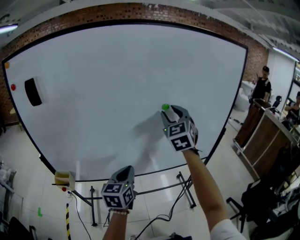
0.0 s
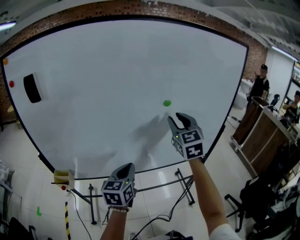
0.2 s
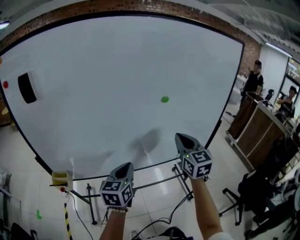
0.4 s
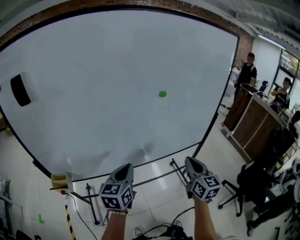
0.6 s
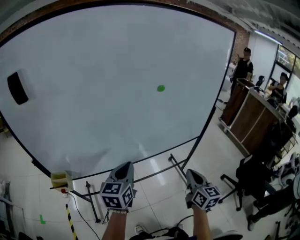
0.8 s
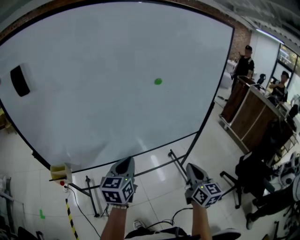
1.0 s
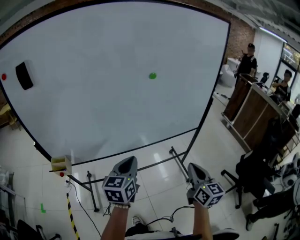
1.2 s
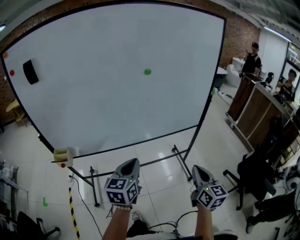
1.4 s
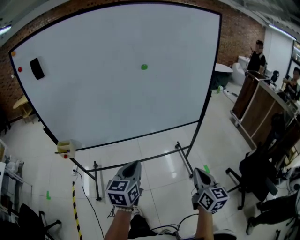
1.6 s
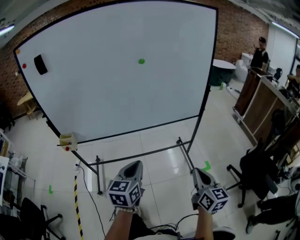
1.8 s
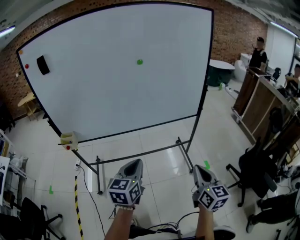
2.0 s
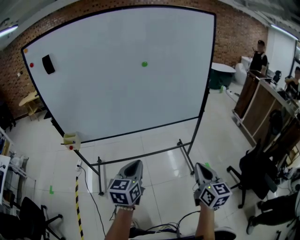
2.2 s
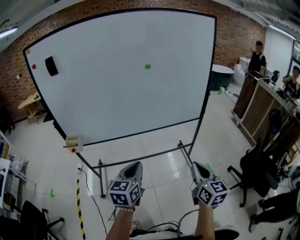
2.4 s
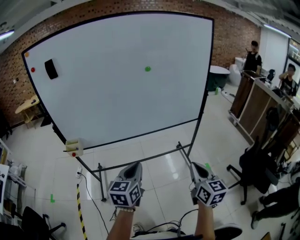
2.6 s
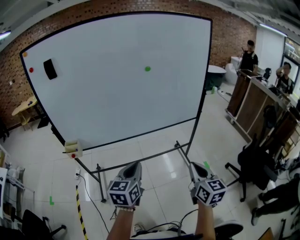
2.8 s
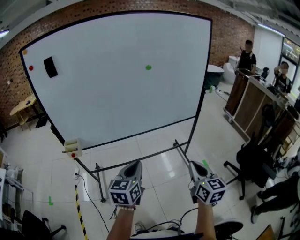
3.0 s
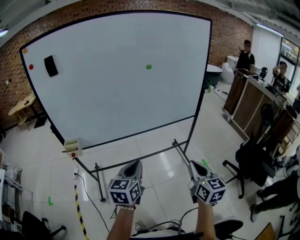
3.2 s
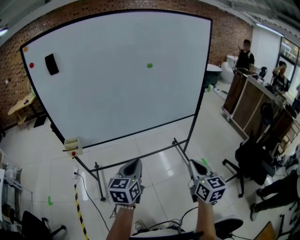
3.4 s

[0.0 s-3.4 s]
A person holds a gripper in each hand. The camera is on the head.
0.0 to 1.6 s: The left gripper moves backward and to the right, about 25 cm. The right gripper moves backward, downward and to the right, roughly 50 cm, rolls clockwise, seen from behind, by some 50 degrees, and closes up.
1.6 to 3.4 s: The right gripper moves to the left and backward, roughly 15 cm; the left gripper heads backward and to the left, covering some 10 cm.

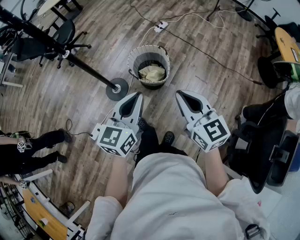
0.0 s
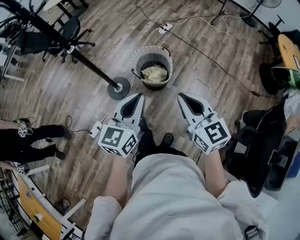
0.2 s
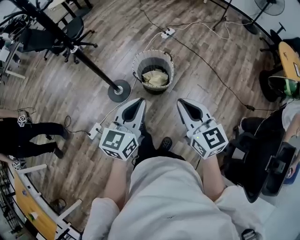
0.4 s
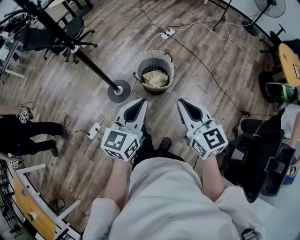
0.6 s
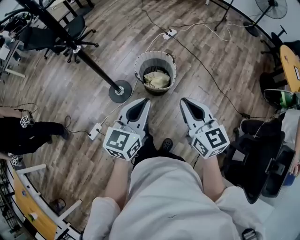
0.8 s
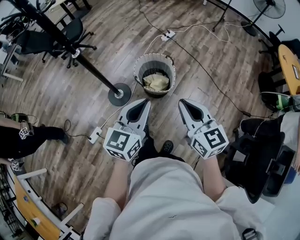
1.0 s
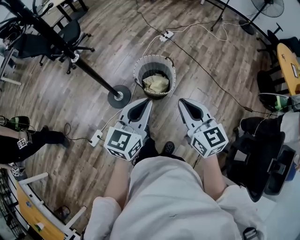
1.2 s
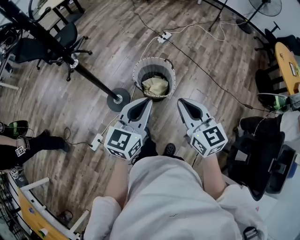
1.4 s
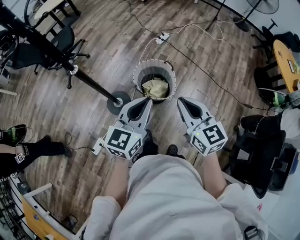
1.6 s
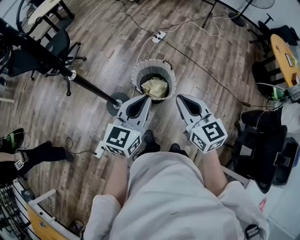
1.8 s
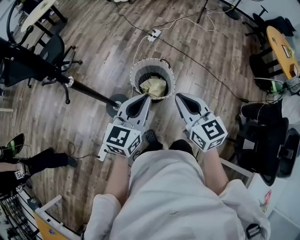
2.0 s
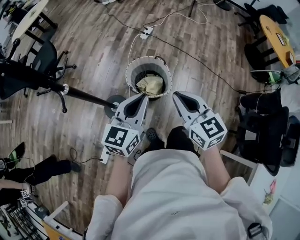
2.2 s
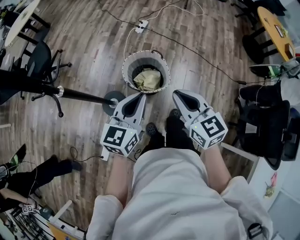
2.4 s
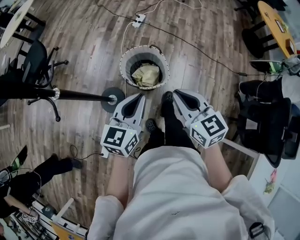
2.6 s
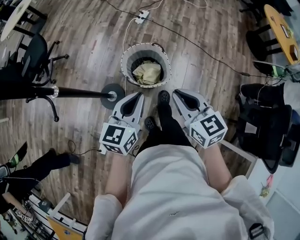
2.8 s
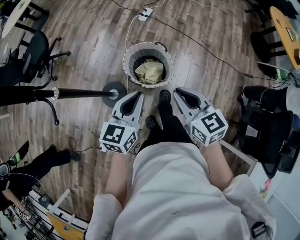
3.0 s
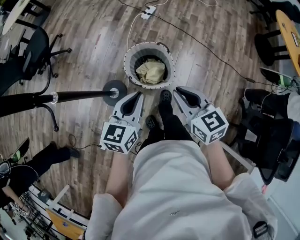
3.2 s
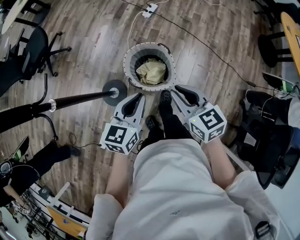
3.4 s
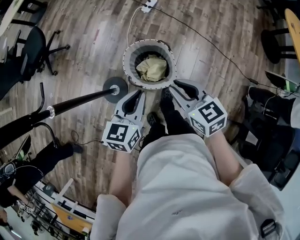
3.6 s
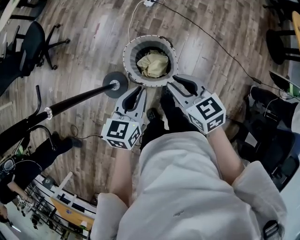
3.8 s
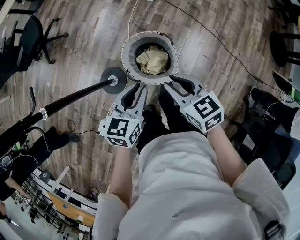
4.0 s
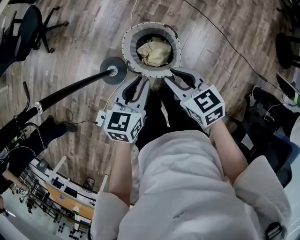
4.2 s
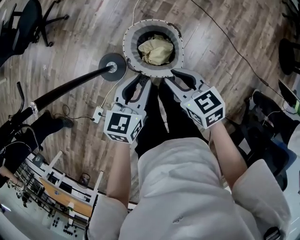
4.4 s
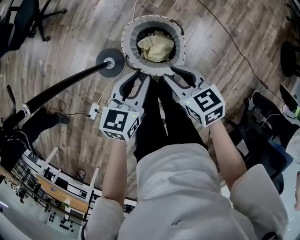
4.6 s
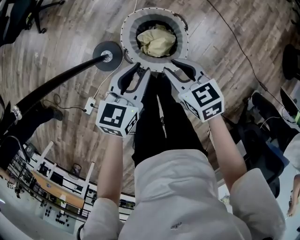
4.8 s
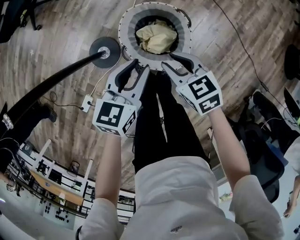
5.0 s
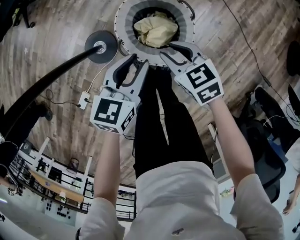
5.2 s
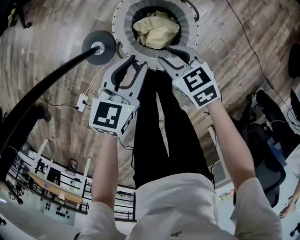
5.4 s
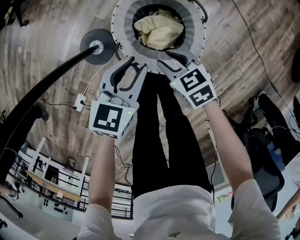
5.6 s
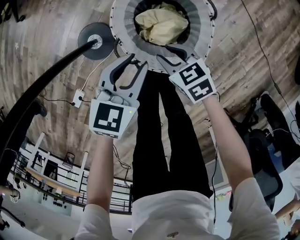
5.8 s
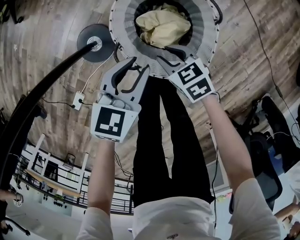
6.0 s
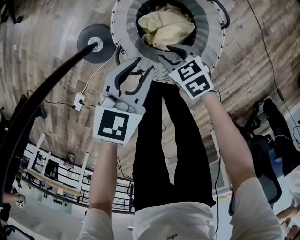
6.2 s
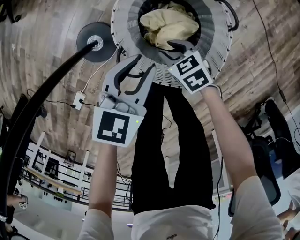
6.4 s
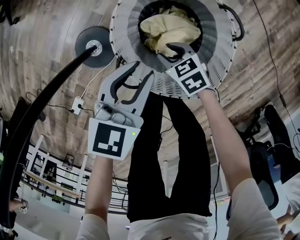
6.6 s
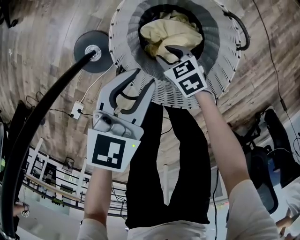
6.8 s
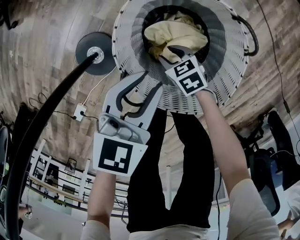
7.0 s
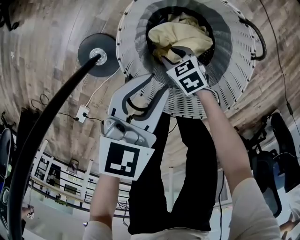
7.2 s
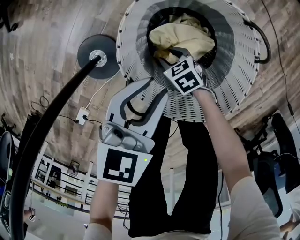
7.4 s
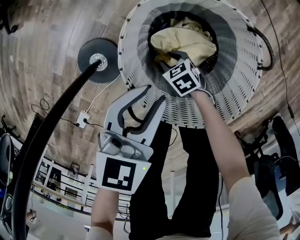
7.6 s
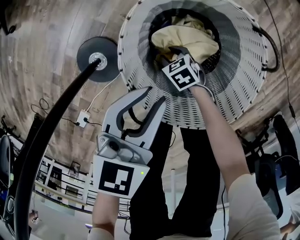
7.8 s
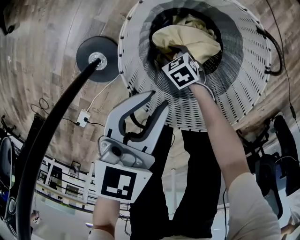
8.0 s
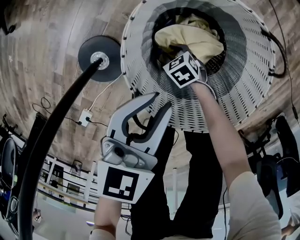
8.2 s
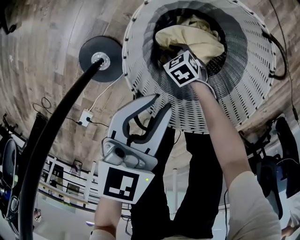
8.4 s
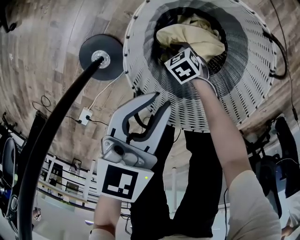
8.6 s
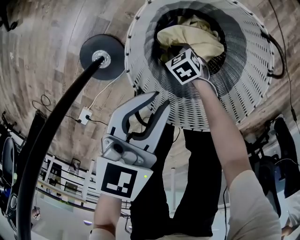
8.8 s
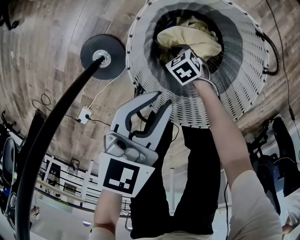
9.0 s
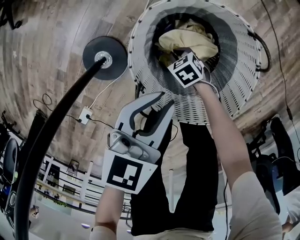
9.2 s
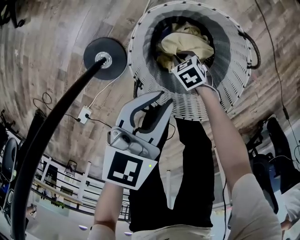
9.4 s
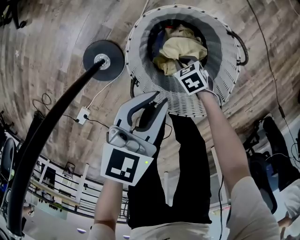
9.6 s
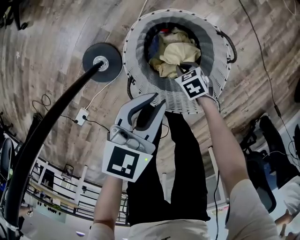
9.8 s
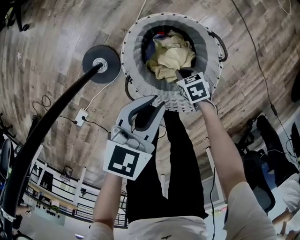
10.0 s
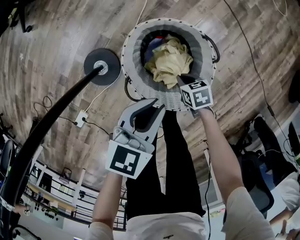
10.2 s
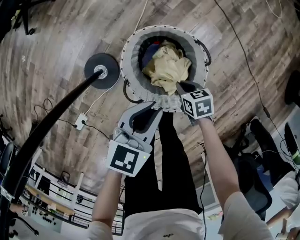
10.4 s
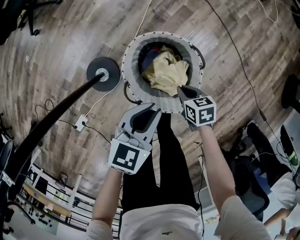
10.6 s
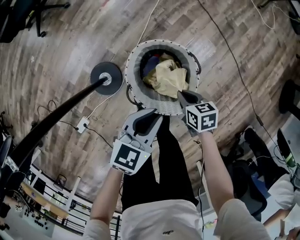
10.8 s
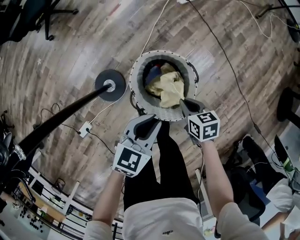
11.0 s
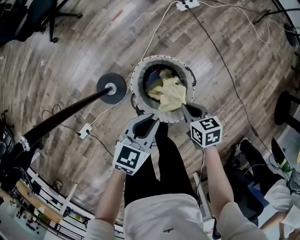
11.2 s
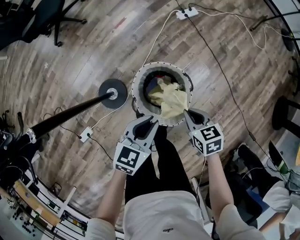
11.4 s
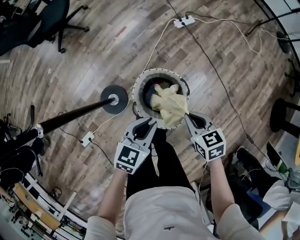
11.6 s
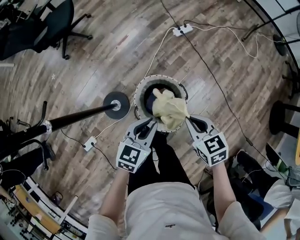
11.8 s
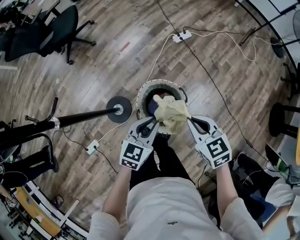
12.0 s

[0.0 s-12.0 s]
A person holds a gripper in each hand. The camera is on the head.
0.0 to 1.6 s: Both grippers travel together forward and to the left, roughly 15 cm.
1.6 to 3.0 s: The two grippers go about 10 cm downward and forward.
3.0 to 4.4 s: The right gripper heads downward and forward, covering about 20 cm, and rotates some 30 degrees. The left gripper travels forward, downward and to the right by about 20 cm.
4.4 to 6.0 s: Both grippers move downward, approximately 30 cm. The right gripper turns by roughly 20 degrees.
6.0 to 7.6 s: The right gripper heads downward, covering about 25 cm, while the left gripper shifts roughly 10 cm downward and forward.
7.6 to 9.0 s: The right gripper closes up.
9.0 to 10.4 s: The right gripper shifts approximately 25 cm upward, and turns by about 20 degrees. Meanwhile the left gripper shifts roughly 15 cm upward.
10.4 to 12.0 s: The right gripper moves upward, roughly 40 cm, and turns by about 40 degrees, while the left gripper moves upward, roughly 20 cm.

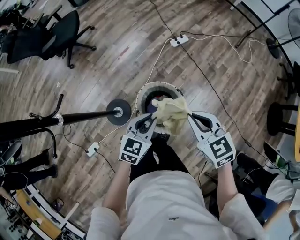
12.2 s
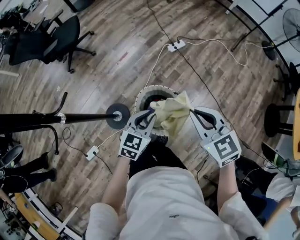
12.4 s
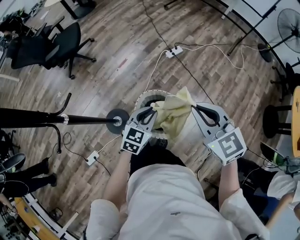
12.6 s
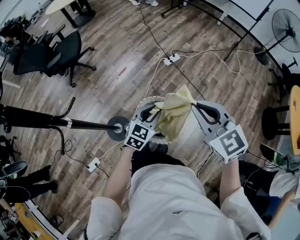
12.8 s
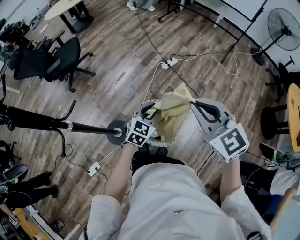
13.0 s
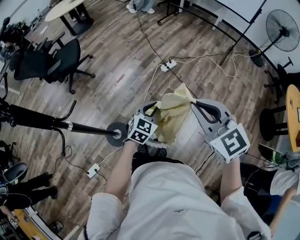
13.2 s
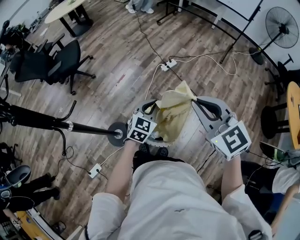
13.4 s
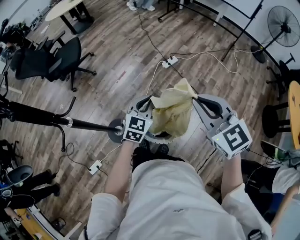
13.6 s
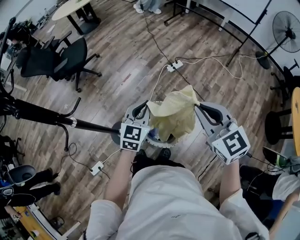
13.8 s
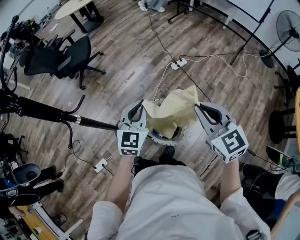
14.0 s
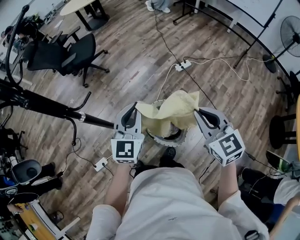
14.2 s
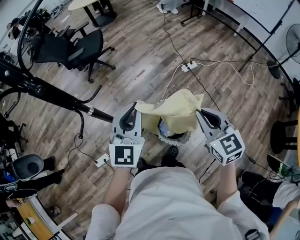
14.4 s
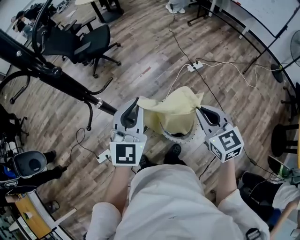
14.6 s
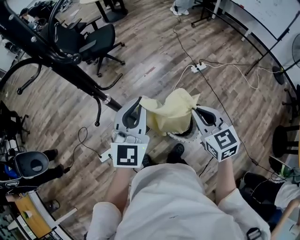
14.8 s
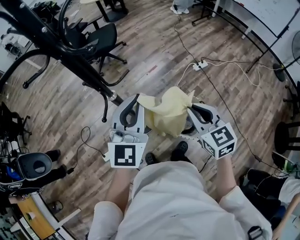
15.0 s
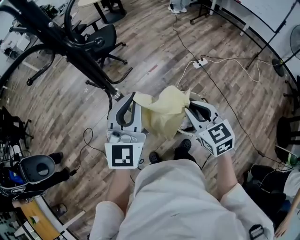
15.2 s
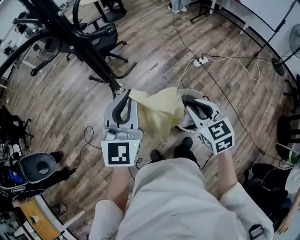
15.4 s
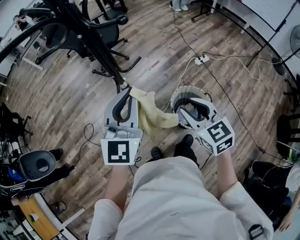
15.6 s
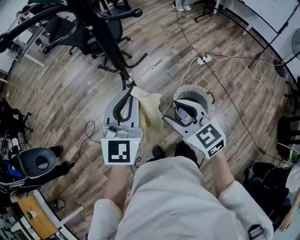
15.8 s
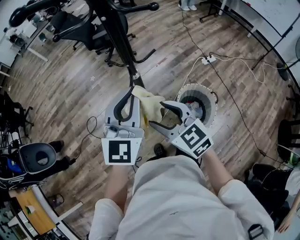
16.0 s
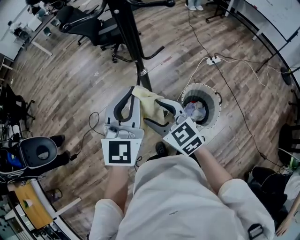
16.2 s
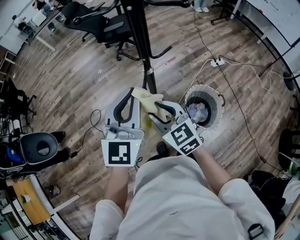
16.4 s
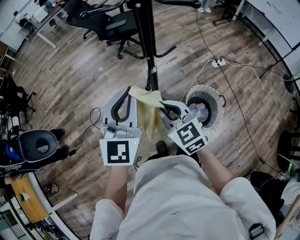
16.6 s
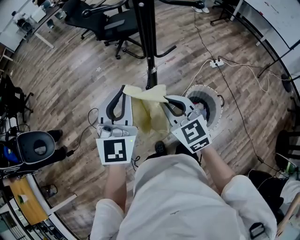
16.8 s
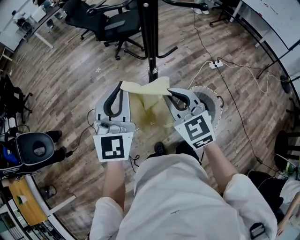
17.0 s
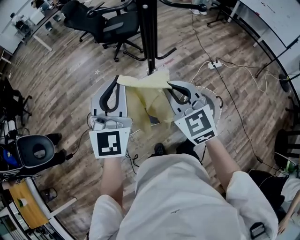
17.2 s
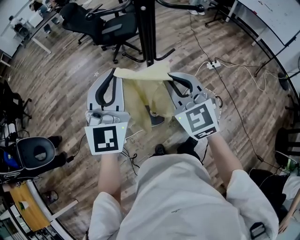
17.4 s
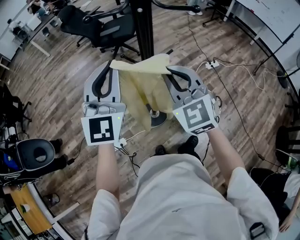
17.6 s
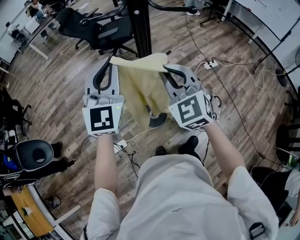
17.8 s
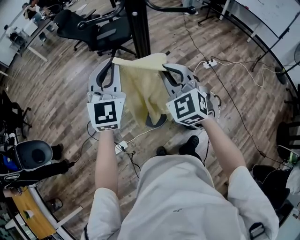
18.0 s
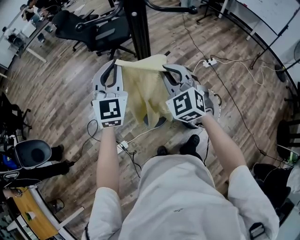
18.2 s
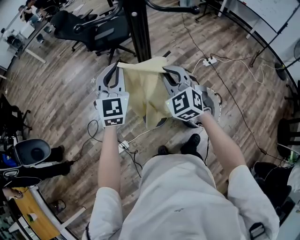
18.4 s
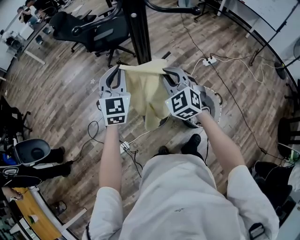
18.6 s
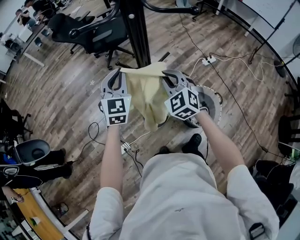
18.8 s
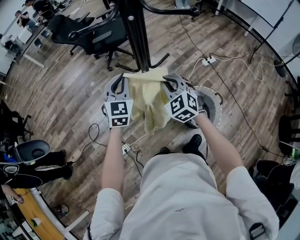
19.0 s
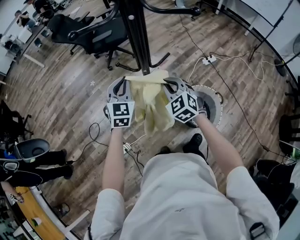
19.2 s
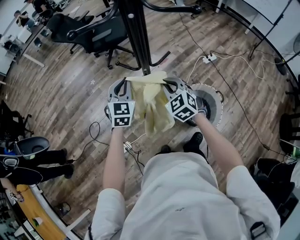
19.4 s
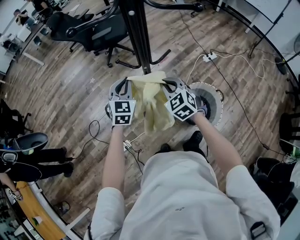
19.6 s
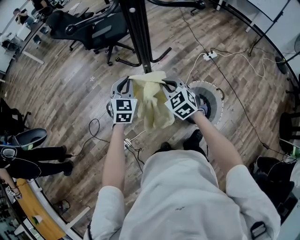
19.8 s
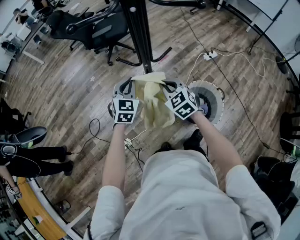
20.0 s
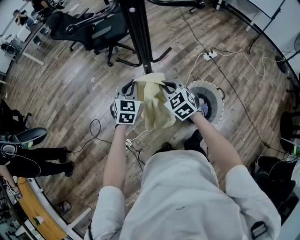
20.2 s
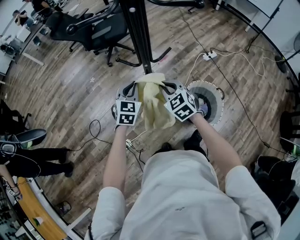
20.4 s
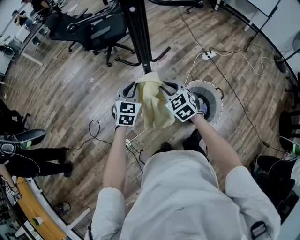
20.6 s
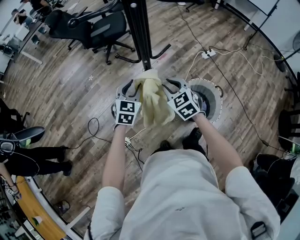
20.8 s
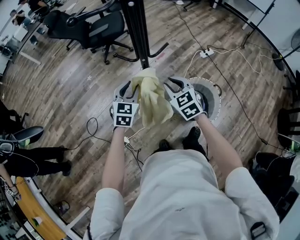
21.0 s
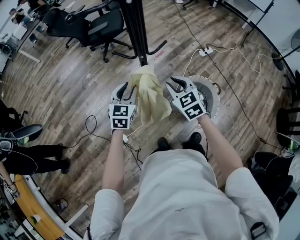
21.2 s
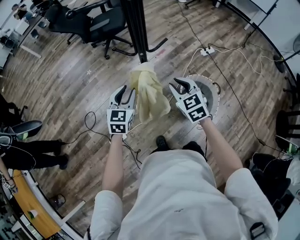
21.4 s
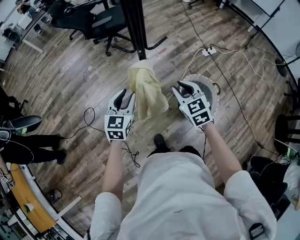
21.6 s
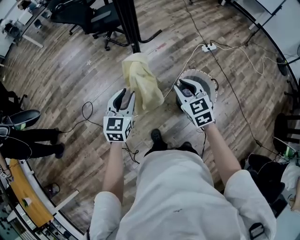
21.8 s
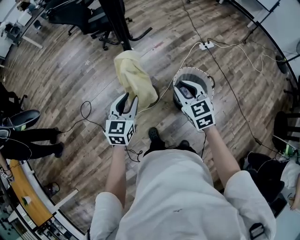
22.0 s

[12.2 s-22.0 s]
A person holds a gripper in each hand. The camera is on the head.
12.2 to 13.6 s: The left gripper is displaced upward and forward by about 10 cm. Meanwhile the right gripper goes approximately 15 cm upward, and swivels approximately 20 degrees.
13.6 to 15.0 s: The left gripper travels to the left and upward by approximately 35 cm, and rotates roughly 30 degrees; the right gripper goes about 20 cm to the left.
15.0 to 16.4 s: The right gripper heads to the left, covering about 30 cm, and opens up; the left gripper shifts some 20 cm to the left.
16.4 to 17.8 s: The left gripper travels forward and upward by some 10 cm. Meanwhile the right gripper shifts some 15 cm upward and forward, swivels some 30 degrees, and closes up.
17.8 to 19.2 s: The right gripper is displaced downward by about 15 cm, while the left gripper moves downward and forward, about 20 cm, and swivels roughly 20 degrees.
19.2 to 20.6 s: The left gripper goes approximately 10 cm downward. Meanwhile the right gripper shifts by roughly 5 cm.
20.6 to 22.0 s: The right gripper shifts about 20 cm to the right and backward. Meanwhile the left gripper shifts about 15 cm backward, and opens up.
